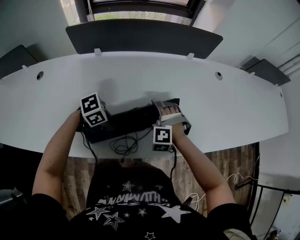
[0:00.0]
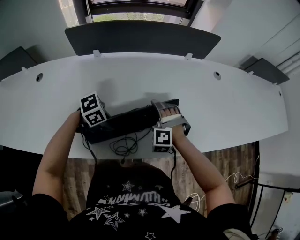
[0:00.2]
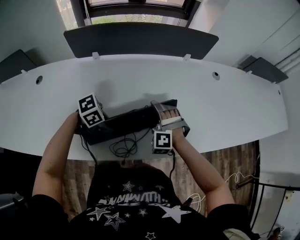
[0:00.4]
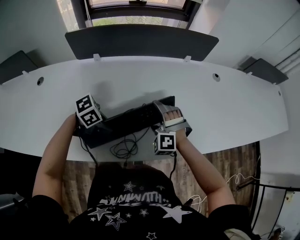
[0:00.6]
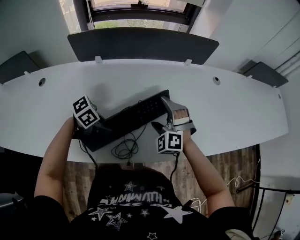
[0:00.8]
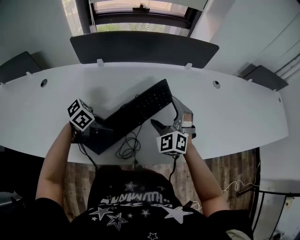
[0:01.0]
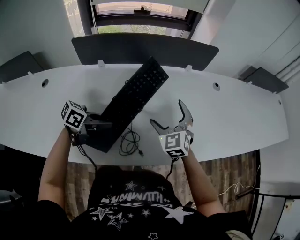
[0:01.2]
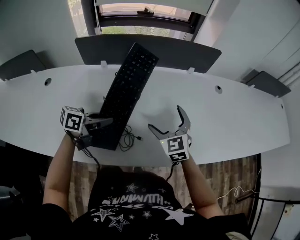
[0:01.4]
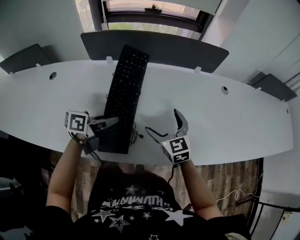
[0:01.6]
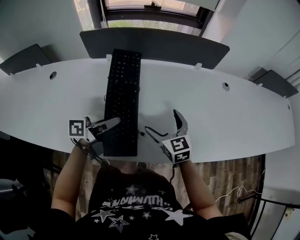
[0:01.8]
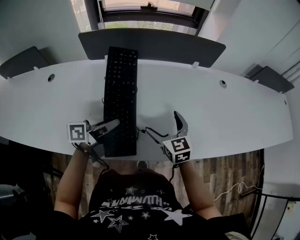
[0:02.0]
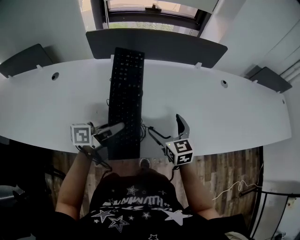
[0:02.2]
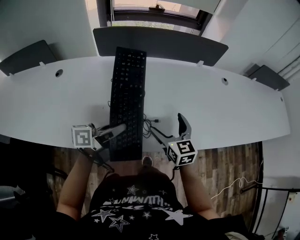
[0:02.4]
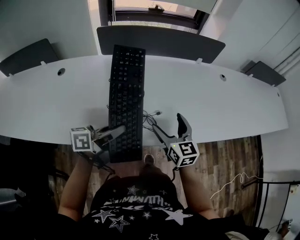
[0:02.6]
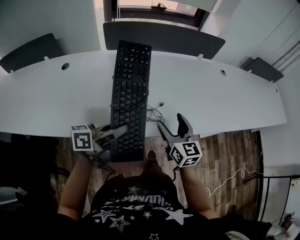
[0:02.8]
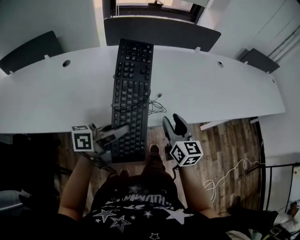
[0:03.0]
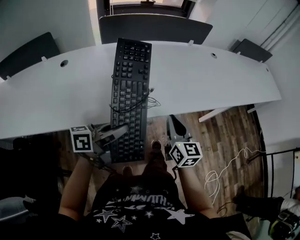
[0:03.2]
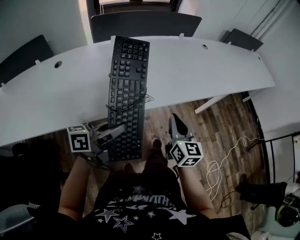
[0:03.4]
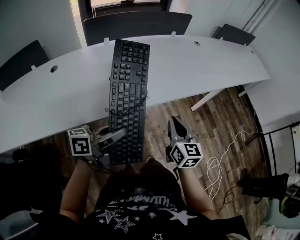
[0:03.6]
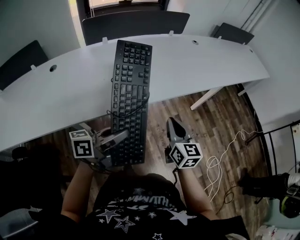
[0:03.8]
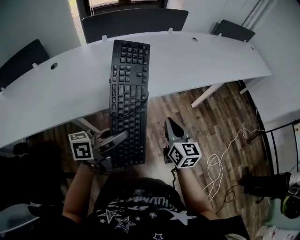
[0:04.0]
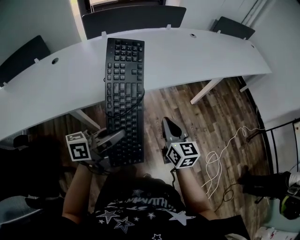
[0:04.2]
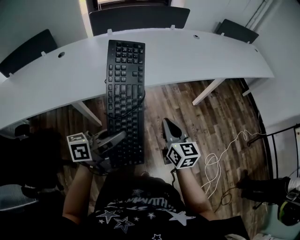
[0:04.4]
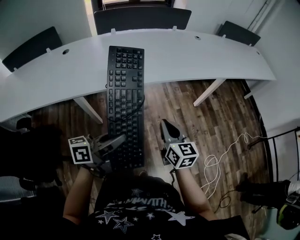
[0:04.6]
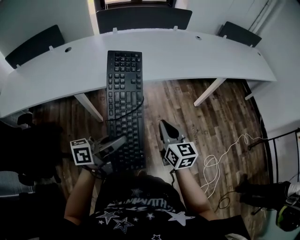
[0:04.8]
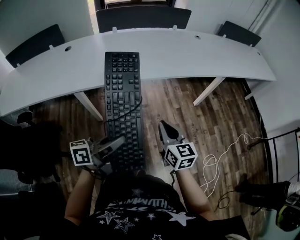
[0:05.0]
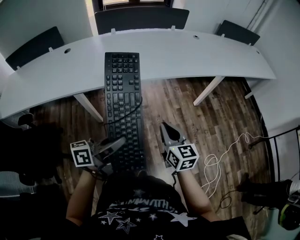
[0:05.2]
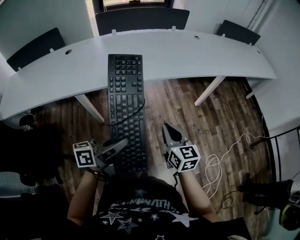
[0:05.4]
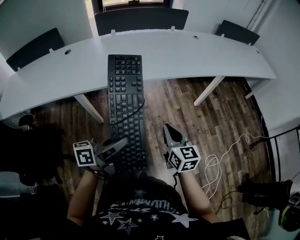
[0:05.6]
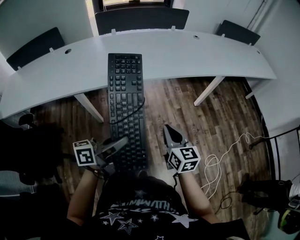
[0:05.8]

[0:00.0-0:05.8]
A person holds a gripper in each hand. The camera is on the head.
0:00.0 to 0:01.4: The grippers both shift upward by about 10 cm. The left gripper tips its fingers upward by roughly 40 degrees. The right gripper rotates around the line of its fingers by approximately 60 degrees, clockwise from behind.
0:01.4 to 0:02.8: The two grippers go about 20 cm backward. The right gripper rotates roughly 30 degrees.
0:02.8 to 0:04.4: The right gripper closes.
0:04.4 to 0:05.8: The grippers stay close to where they were, moving slightly.

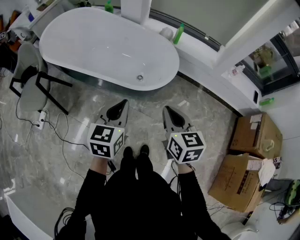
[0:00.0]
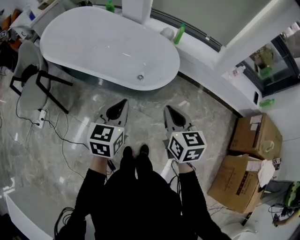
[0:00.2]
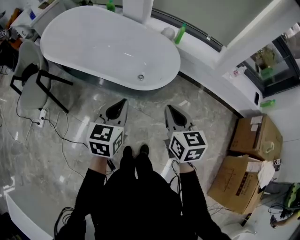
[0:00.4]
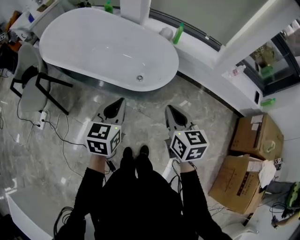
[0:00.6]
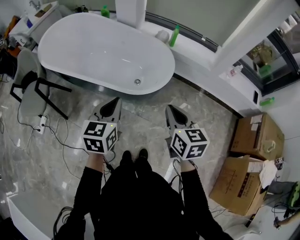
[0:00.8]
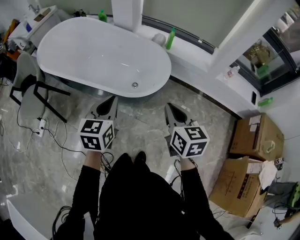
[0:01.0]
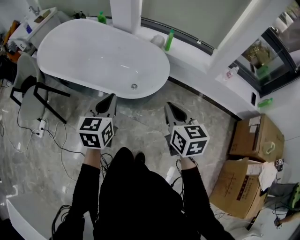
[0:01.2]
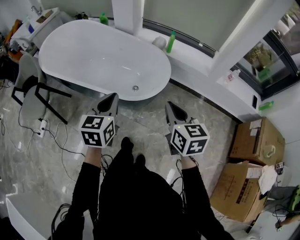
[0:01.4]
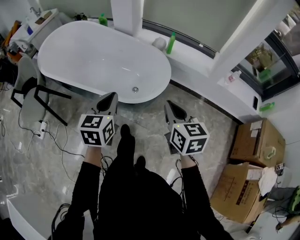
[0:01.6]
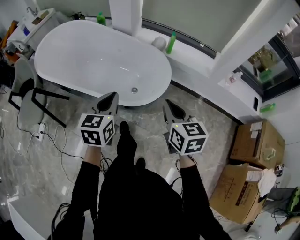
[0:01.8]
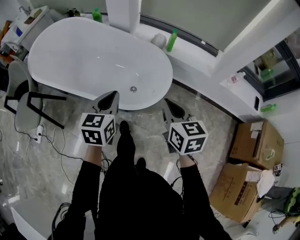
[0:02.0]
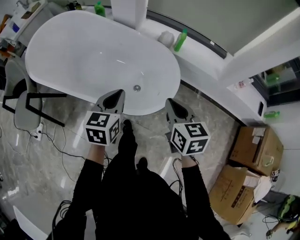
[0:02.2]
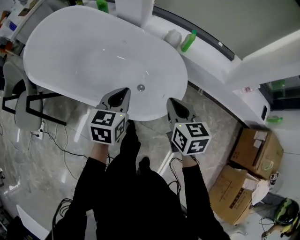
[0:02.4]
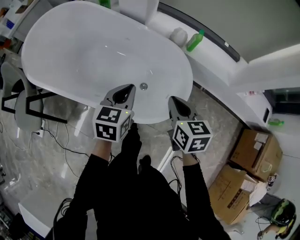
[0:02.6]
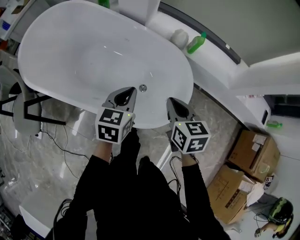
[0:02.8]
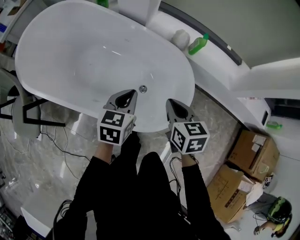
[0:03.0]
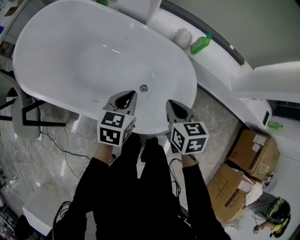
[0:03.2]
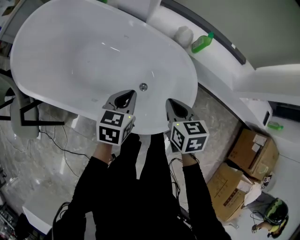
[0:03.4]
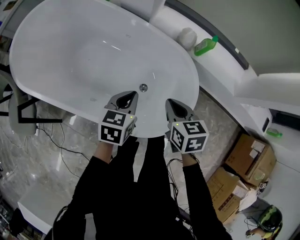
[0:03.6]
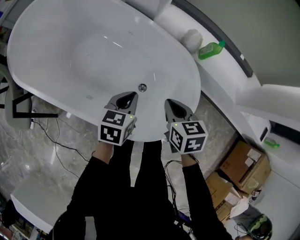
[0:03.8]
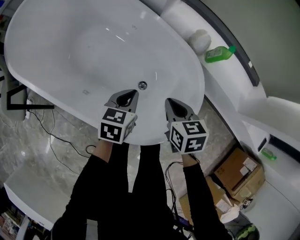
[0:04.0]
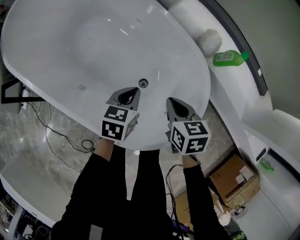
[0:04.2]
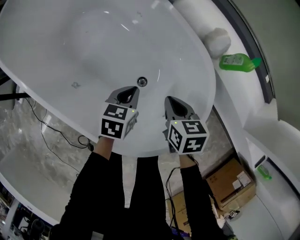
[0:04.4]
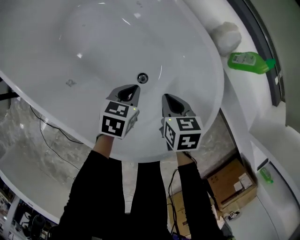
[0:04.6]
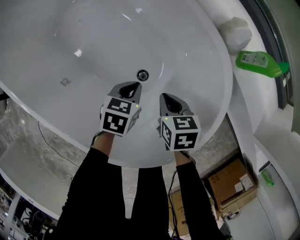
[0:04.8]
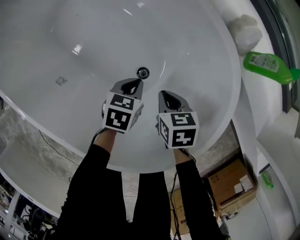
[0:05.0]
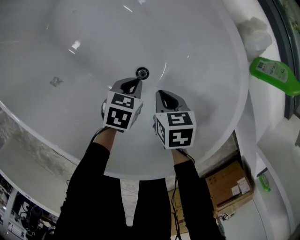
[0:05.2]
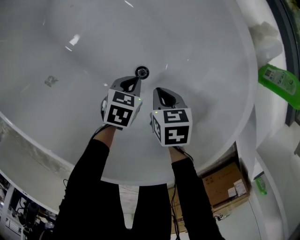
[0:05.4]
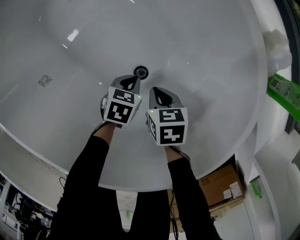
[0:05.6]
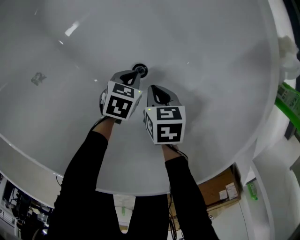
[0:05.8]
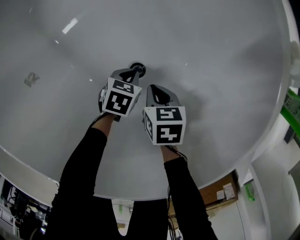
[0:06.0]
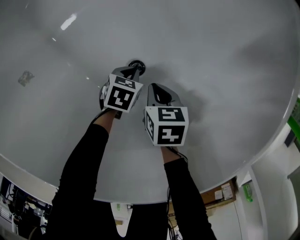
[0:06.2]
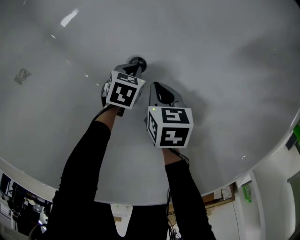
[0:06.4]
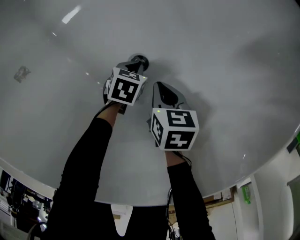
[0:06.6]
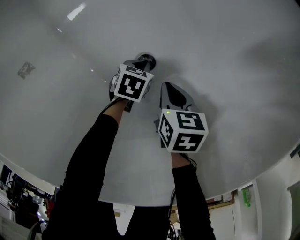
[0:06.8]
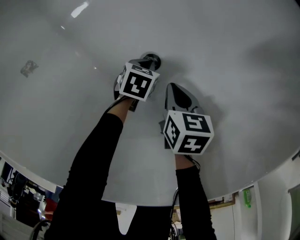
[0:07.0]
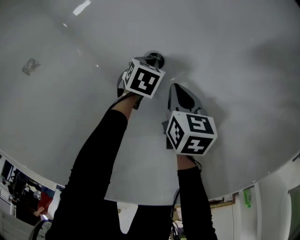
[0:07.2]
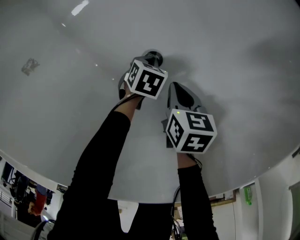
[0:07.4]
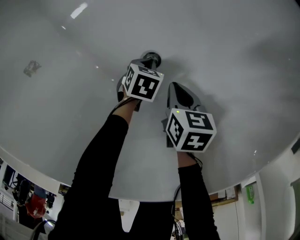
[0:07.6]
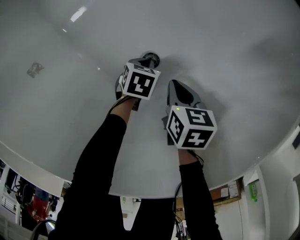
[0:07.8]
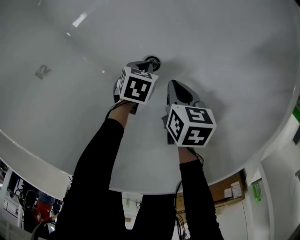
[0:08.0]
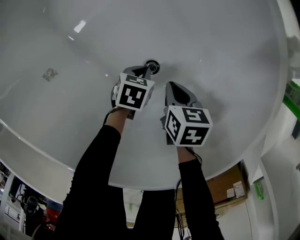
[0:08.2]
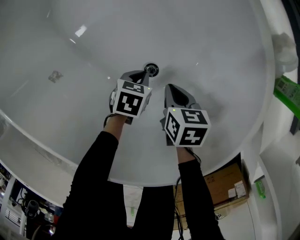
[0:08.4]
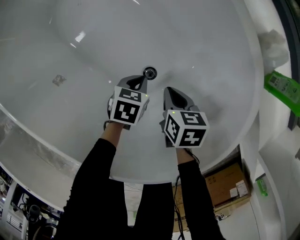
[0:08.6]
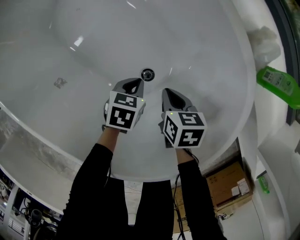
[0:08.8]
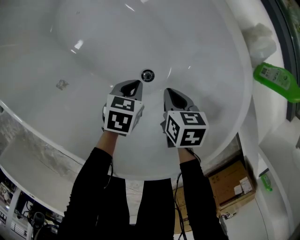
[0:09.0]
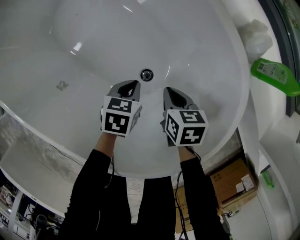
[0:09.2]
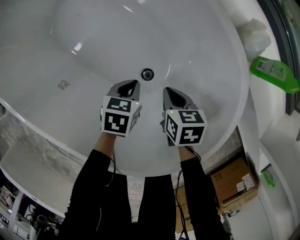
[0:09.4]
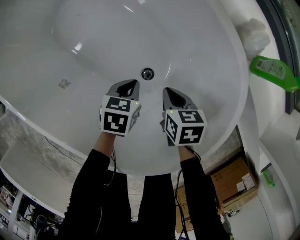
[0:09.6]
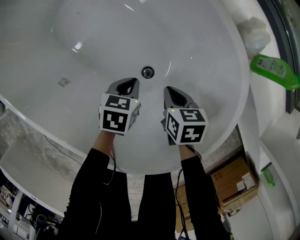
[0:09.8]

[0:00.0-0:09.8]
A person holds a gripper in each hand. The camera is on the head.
0:00.0 to 0:01.4: The right gripper moves to the right, some 10 cm, while the left gripper is displaced forward by about 5 cm.
0:01.4 to 0:02.8: The grippers both shift forward by about 30 cm.
0:02.8 to 0:04.2: The grippers both shift downward and forward by about 20 cm. The right gripper rotates some 20 degrees.
0:04.2 to 0:05.6: The grippers both shift downward by about 30 cm. The right gripper rotates roughly 20 degrees.
0:05.6 to 0:07.0: The left gripper is displaced downward by approximately 15 cm; the right gripper is displaced downward by some 5 cm.
0:07.0 to 0:08.4: The left gripper is displaced upward by about 15 cm. The right gripper heads upward, covering about 10 cm.
0:08.4 to 0:09.8: The left gripper shifts roughly 10 cm upward. The right gripper heads upward, covering roughly 5 cm.

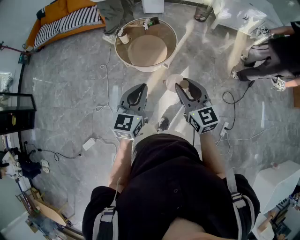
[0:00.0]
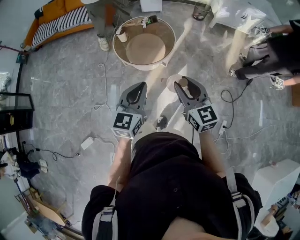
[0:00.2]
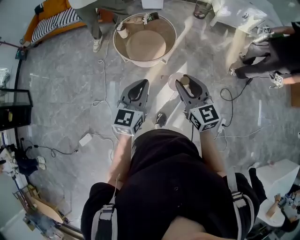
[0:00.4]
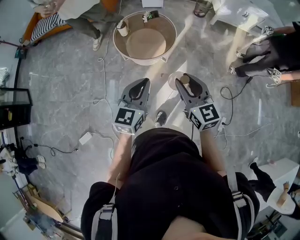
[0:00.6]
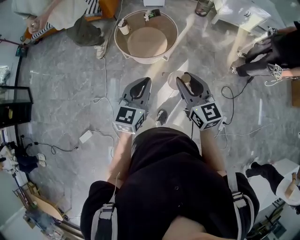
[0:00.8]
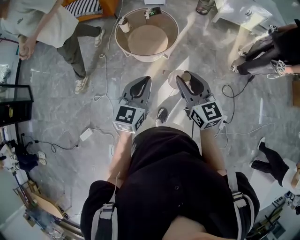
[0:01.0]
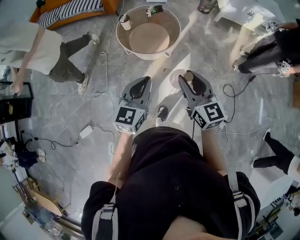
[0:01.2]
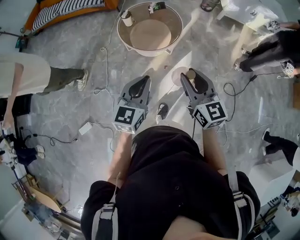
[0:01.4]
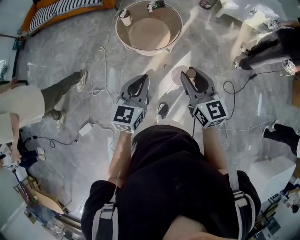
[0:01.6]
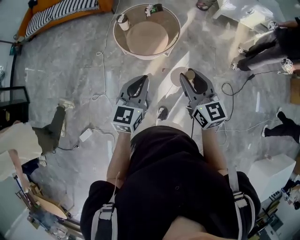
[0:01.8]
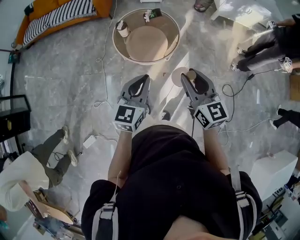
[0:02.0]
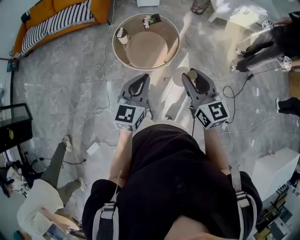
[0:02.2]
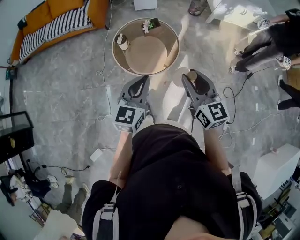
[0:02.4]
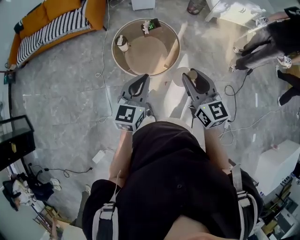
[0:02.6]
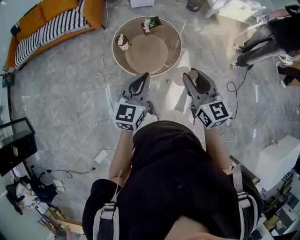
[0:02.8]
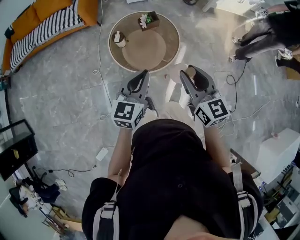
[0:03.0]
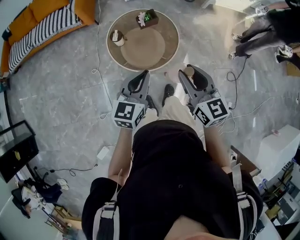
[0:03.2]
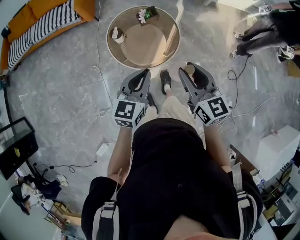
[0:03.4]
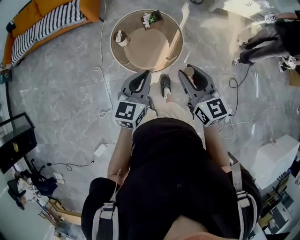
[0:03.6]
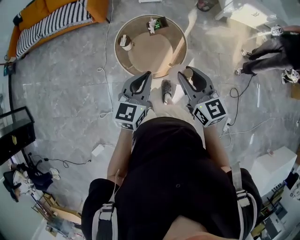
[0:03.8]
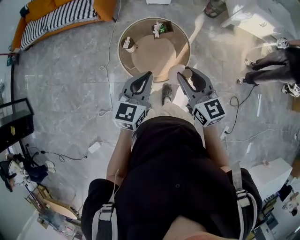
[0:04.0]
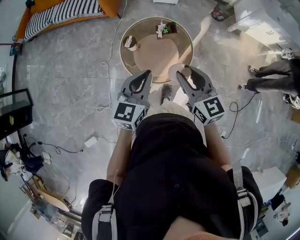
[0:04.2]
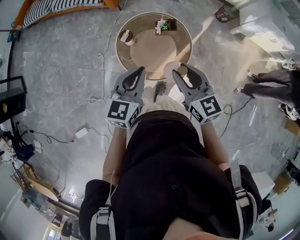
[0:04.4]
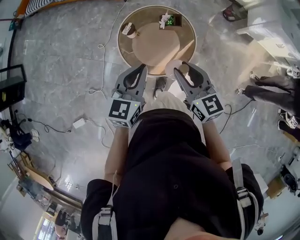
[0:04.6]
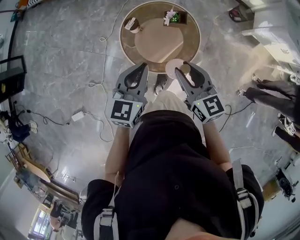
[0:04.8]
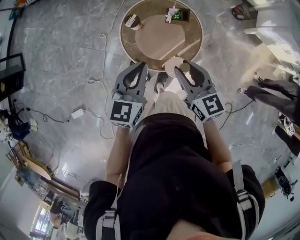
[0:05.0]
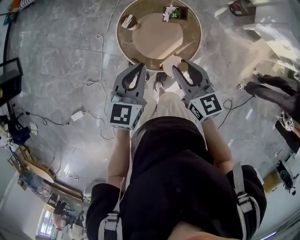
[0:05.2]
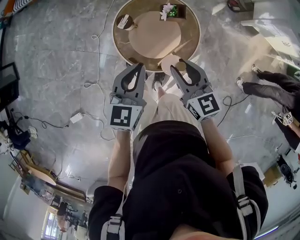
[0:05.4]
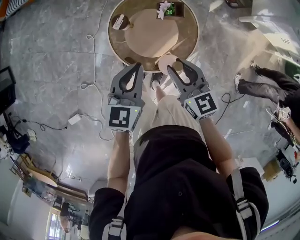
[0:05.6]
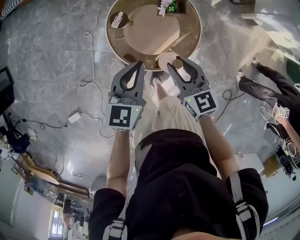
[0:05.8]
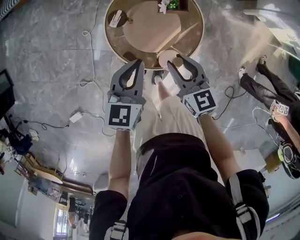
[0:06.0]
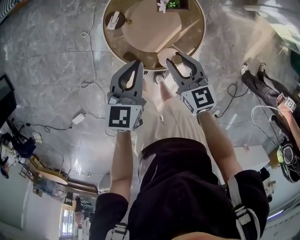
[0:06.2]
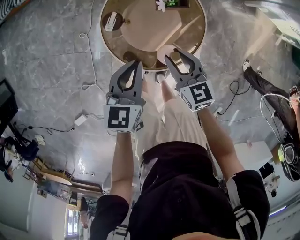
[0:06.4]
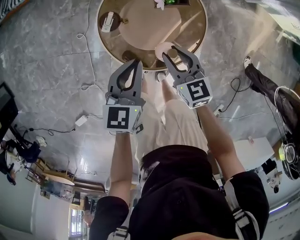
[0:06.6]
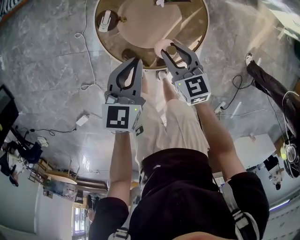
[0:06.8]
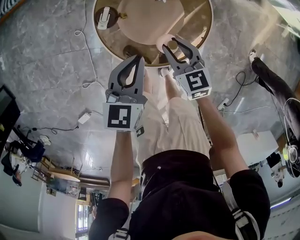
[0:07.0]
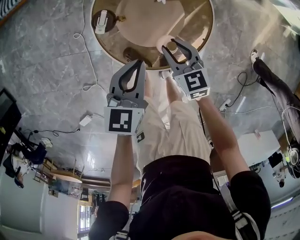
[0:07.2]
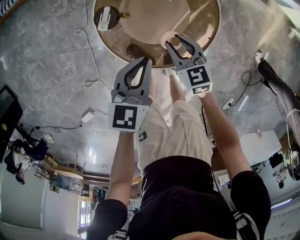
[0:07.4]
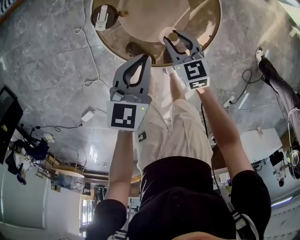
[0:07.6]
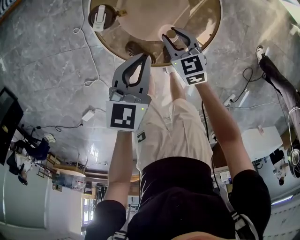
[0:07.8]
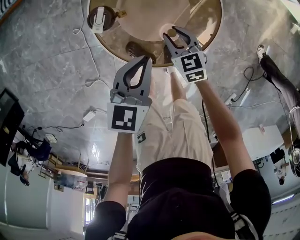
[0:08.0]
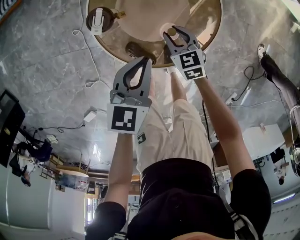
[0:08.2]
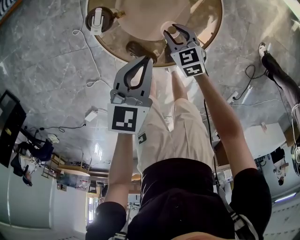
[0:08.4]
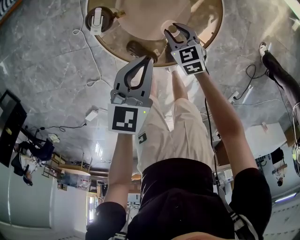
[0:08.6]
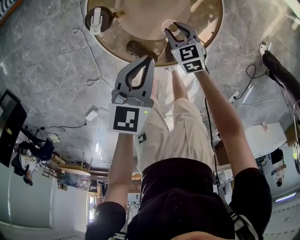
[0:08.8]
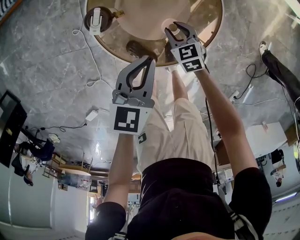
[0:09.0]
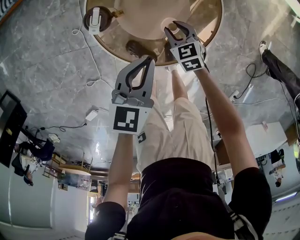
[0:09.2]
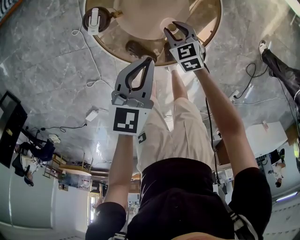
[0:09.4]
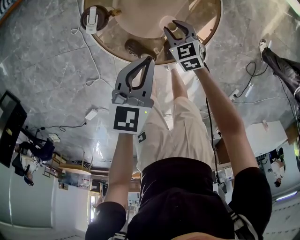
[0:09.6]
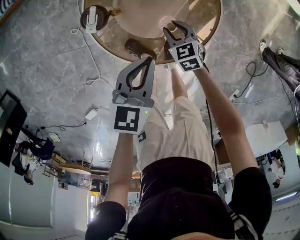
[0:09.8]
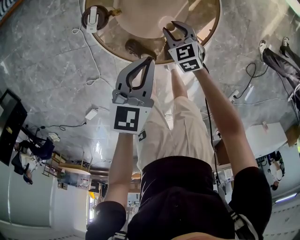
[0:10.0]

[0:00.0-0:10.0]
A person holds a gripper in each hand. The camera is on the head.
0:00.0 to 0:01.4: The grippers move only a little.
0:01.4 to 0:02.8: Both grippers move forward and to the left, some 25 cm.
0:02.8 to 0:04.2: The two grippers go some 15 cm forward.
0:04.2 to 0:05.8: The two grippers go some 20 cm downward and forward.
0:05.8 to 0:07.2: Both grippers travel together downward, roughly 15 cm.
0:07.2 to 0:08.6: The right gripper moves downward, some 15 cm.
0:08.6 to 0:10.0: The grippers stay close to where they were, moving slightly.
